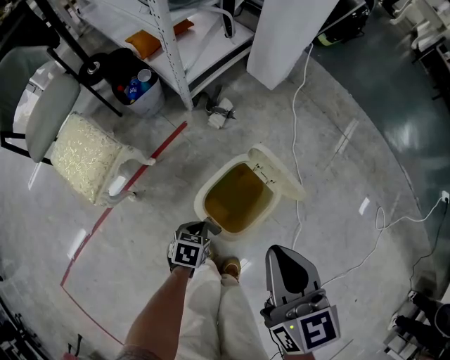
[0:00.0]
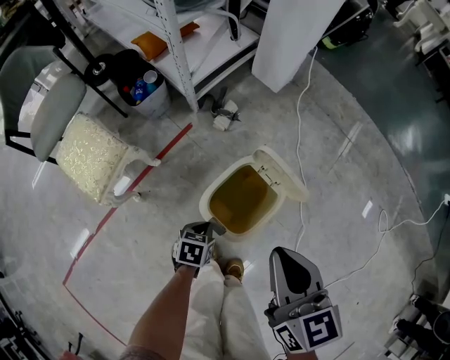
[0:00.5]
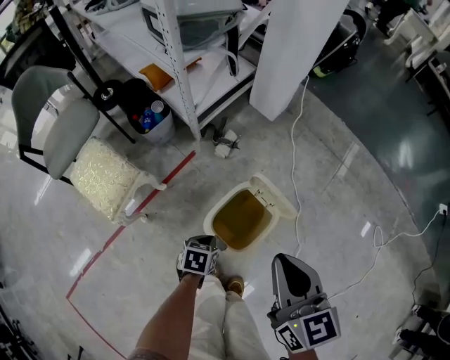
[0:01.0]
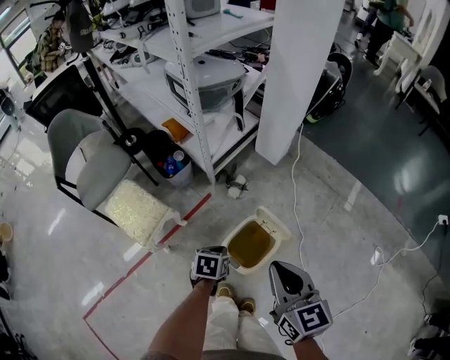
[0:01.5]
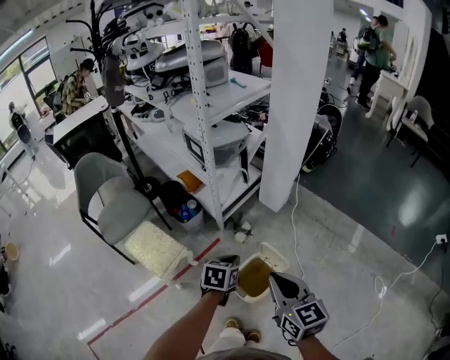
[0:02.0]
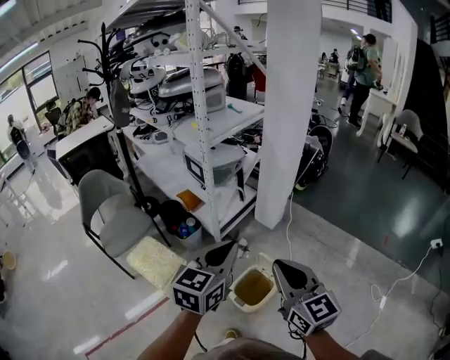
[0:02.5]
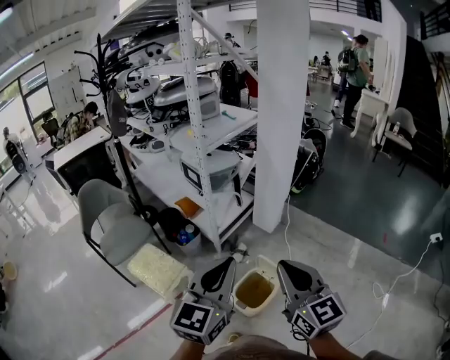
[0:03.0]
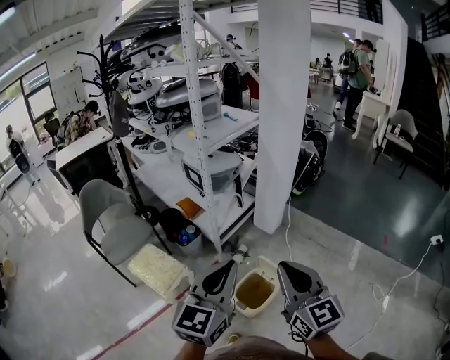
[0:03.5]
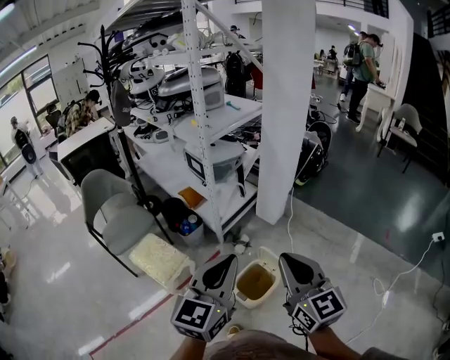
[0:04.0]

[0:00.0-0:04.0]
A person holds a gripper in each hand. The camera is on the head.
0:00.0 to 0:02.0: The right gripper moves upward, about 25 cm; the left gripper is displaced upward by about 40 cm, and turns by about 20 degrees.
0:02.0 to 0:04.0: The right gripper moves upward, some 15 cm, while the left gripper goes approximately 35 cm upward and backward, and tips its fingers upward by some 40 degrees.

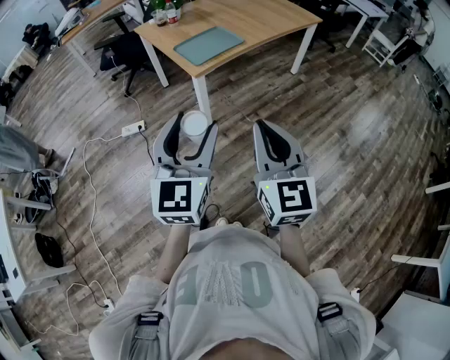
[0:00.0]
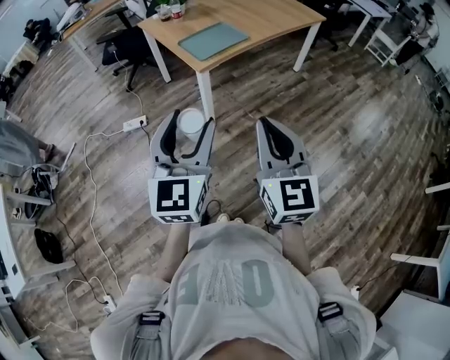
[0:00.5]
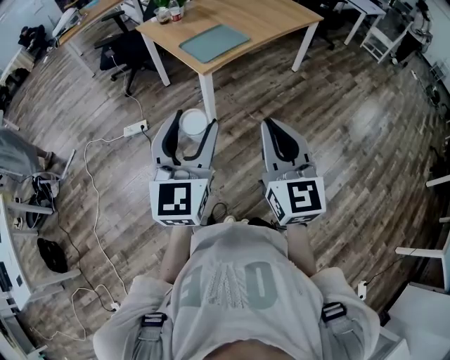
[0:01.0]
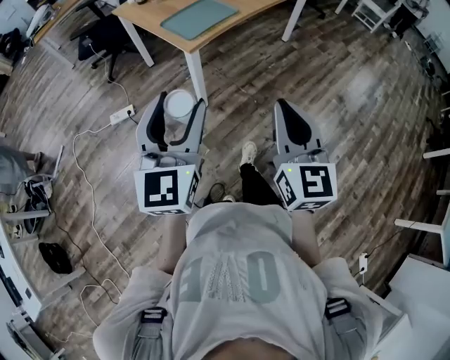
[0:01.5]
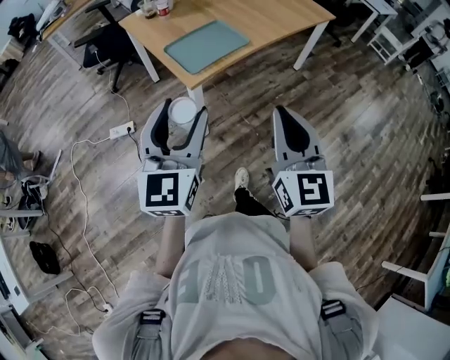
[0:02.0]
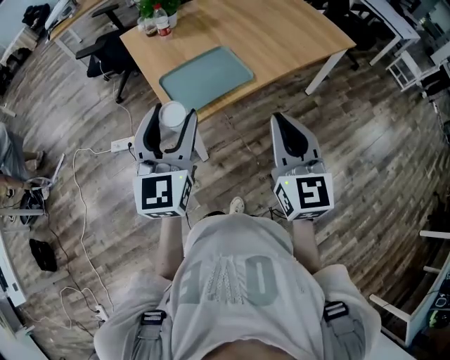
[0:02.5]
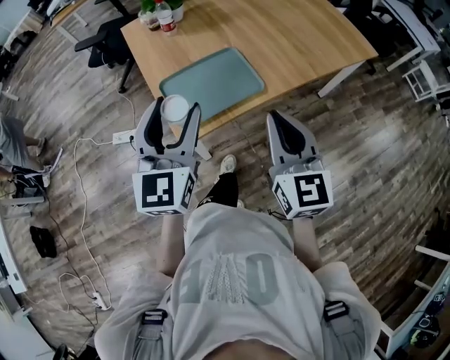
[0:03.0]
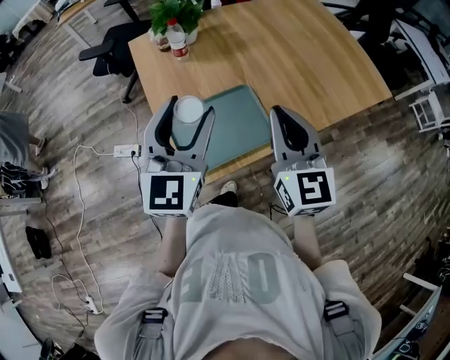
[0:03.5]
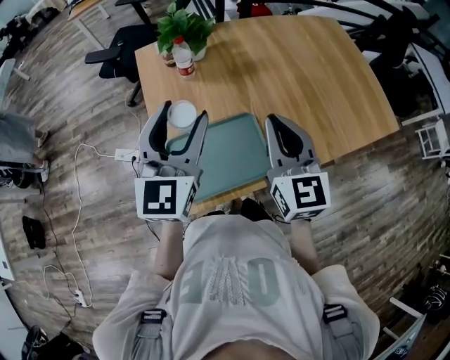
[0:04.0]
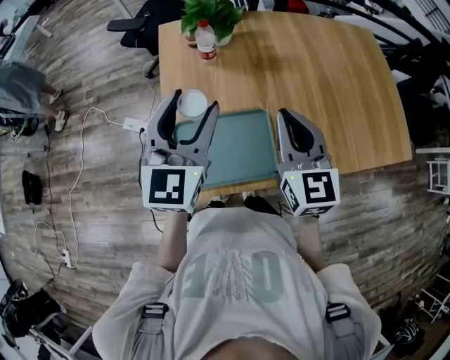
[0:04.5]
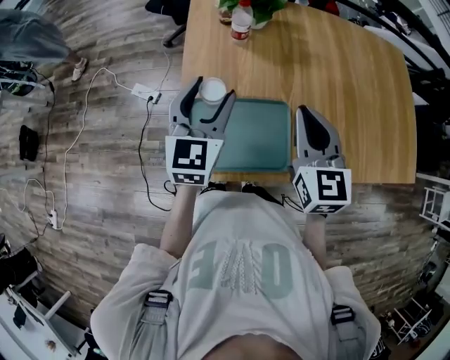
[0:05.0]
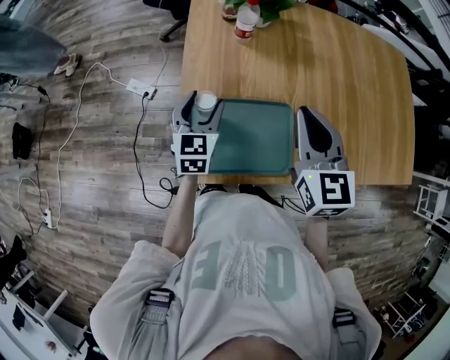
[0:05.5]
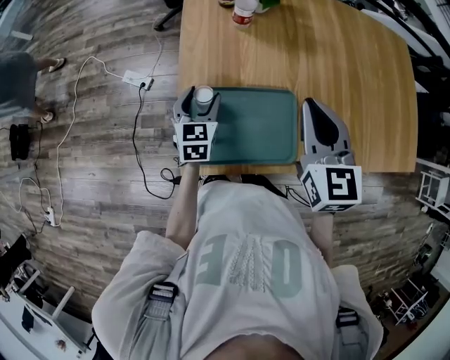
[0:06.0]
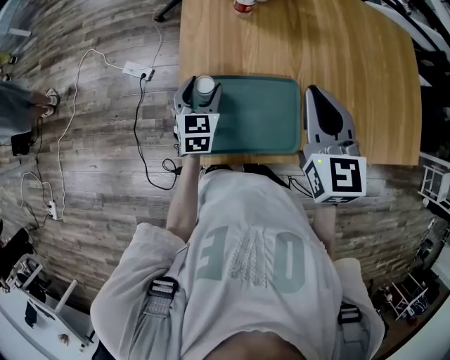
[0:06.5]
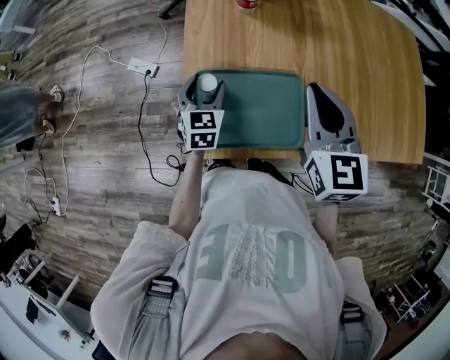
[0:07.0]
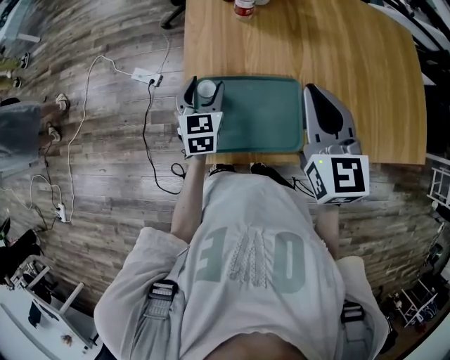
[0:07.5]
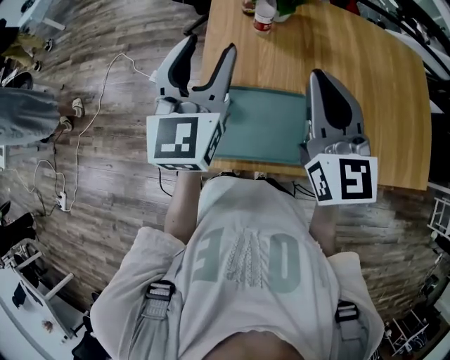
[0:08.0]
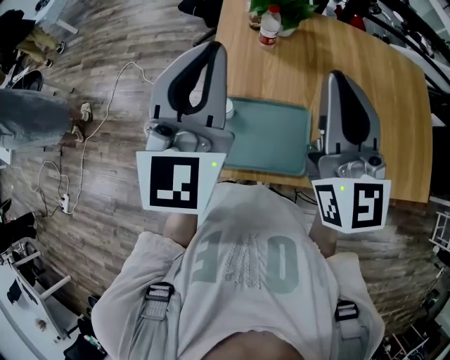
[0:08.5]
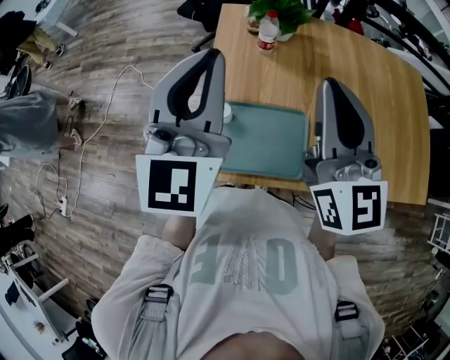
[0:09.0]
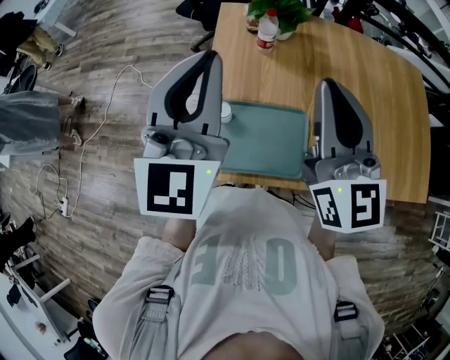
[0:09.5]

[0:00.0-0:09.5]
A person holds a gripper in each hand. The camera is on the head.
0:00.0 to 0:02.0: Both grippers move forward, approximately 20 cm.
0:02.0 to 0:04.0: The pair of grippers is taken forward, roughly 50 cm. The right gripper rotates roughly 30 degrees.
0:04.0 to 0:05.5: The left gripper is displaced downward by roughly 20 cm, and rotates some 30 degrees. The right gripper shifts approximately 5 cm forward.
0:07.5 to 0:09.5: The right gripper is displaced upward by about 15 cm, and rotates approximately 20 degrees; the left gripper is displaced upward by roughly 35 cm, points its fingers about 30 degrees further upward, and closes its fingers.

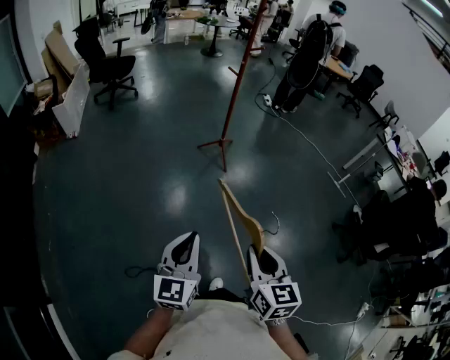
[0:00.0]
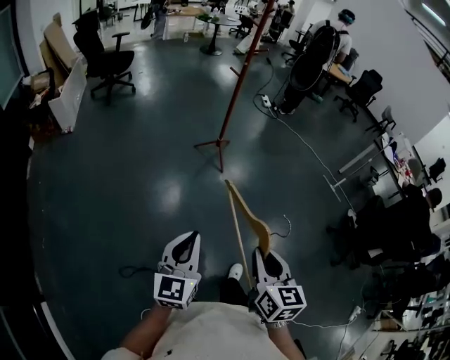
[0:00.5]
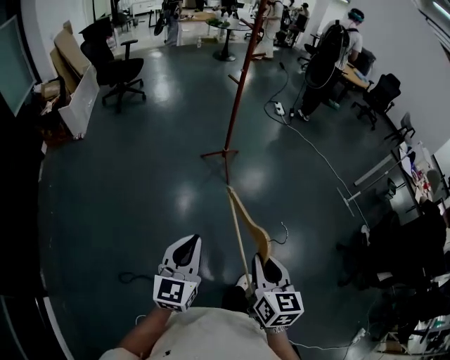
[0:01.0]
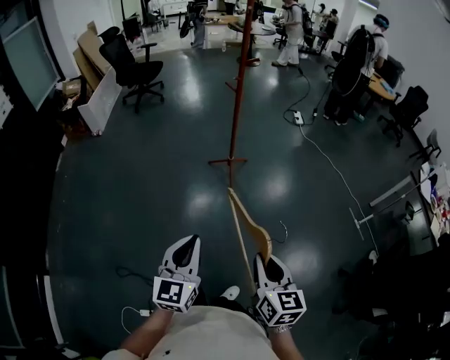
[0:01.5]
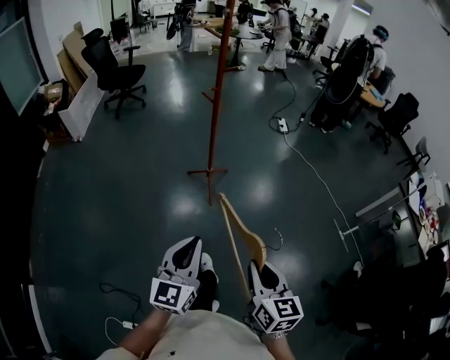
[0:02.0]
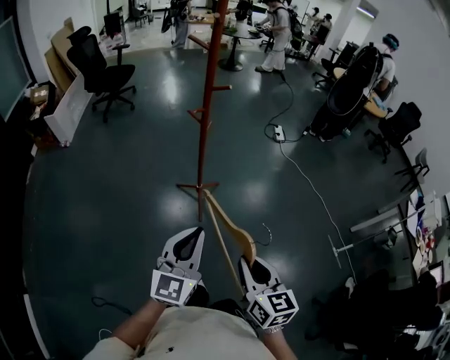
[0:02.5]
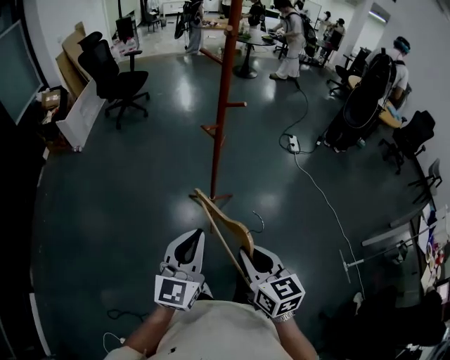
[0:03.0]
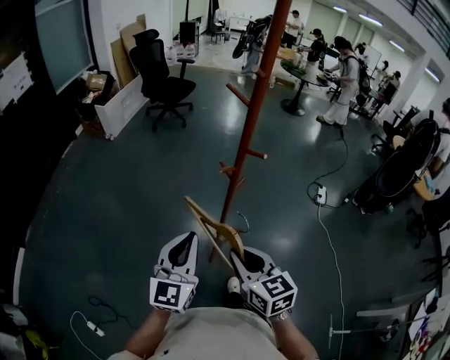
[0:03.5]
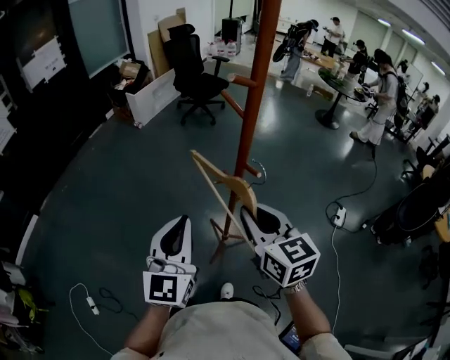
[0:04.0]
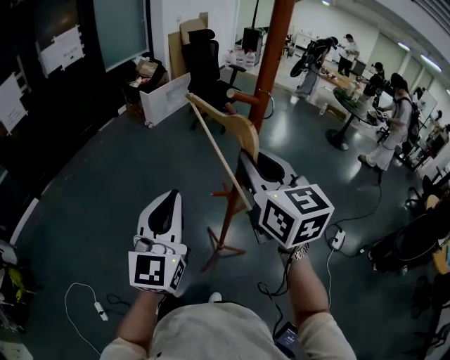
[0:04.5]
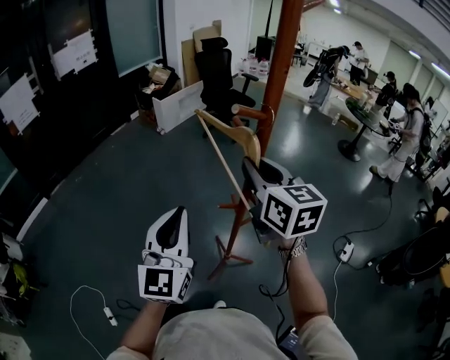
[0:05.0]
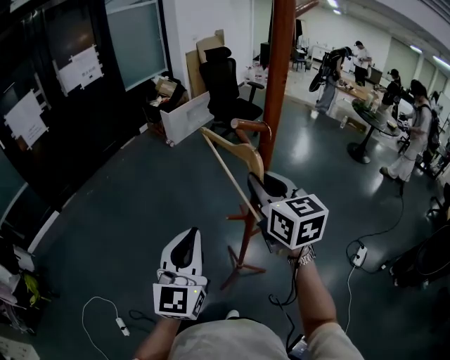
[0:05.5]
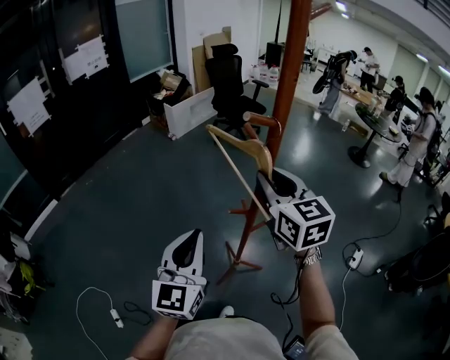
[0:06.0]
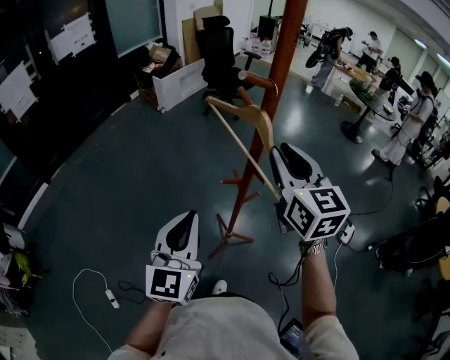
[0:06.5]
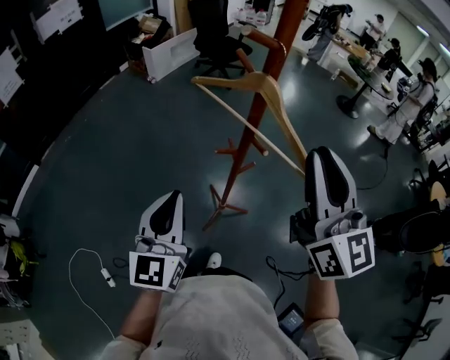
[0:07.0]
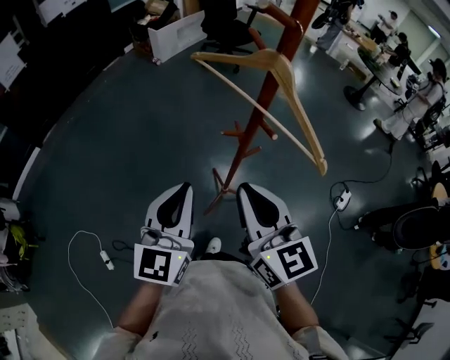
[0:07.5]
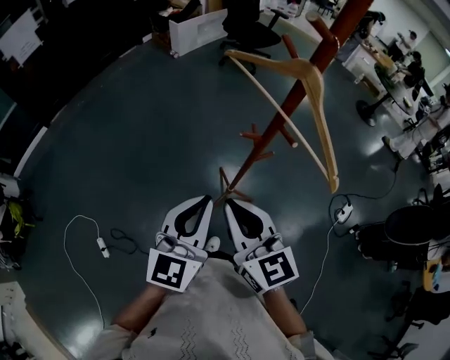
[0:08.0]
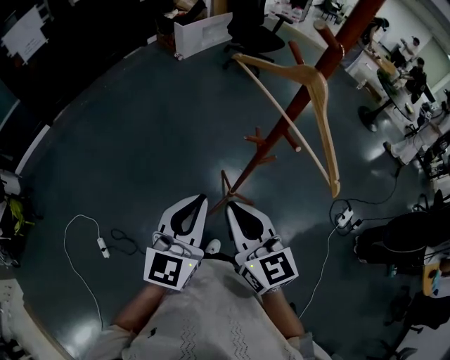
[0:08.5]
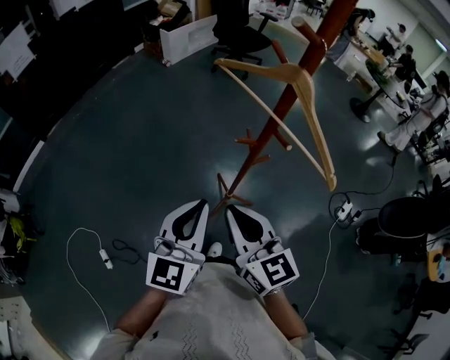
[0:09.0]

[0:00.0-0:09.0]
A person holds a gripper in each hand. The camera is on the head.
0:00.0 to 0:02.0: The pair of grippers is taken to the right and forward, approximately 50 cm.
0:02.0 to 0:04.5: The pair of grippers is taken roughly 70 cm. The right gripper changes its angle by some 60 degrees. The left gripper turns by roughly 60 degrees.
0:04.5 to 0:07.0: The right gripper goes roughly 10 cm backward and to the right; the left gripper is displaced downward by some 10 cm.
0:07.0 to 0:09.0: The right gripper is displaced downward and to the left by some 25 cm, and changes its angle by some 30 degrees.

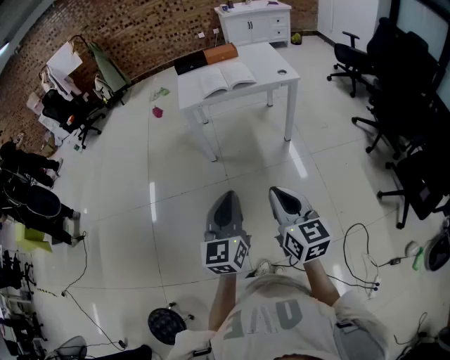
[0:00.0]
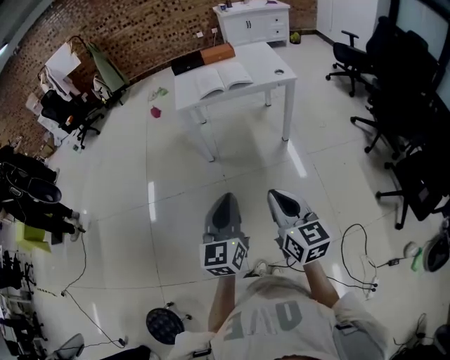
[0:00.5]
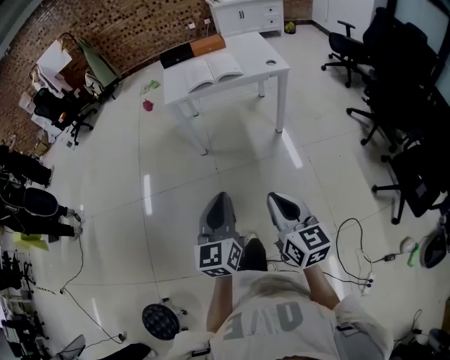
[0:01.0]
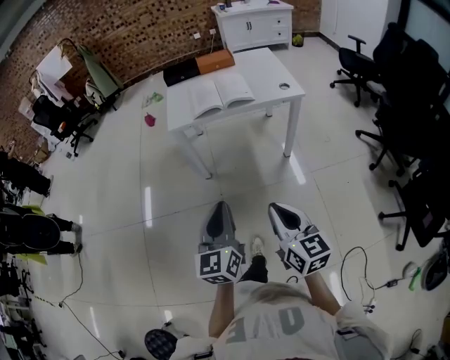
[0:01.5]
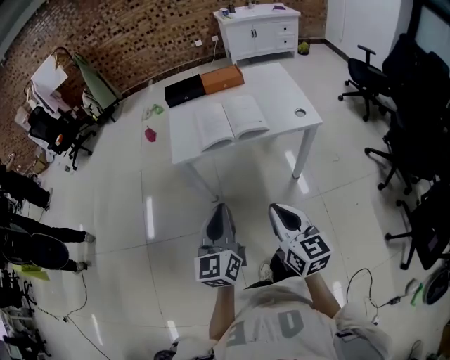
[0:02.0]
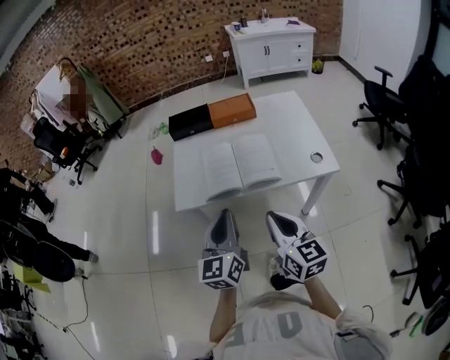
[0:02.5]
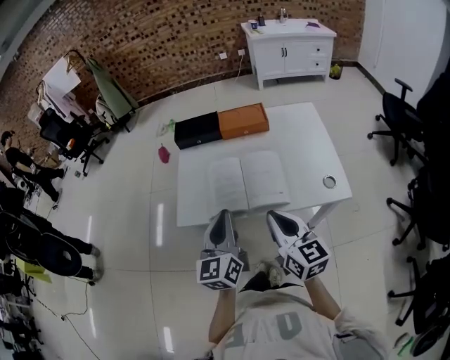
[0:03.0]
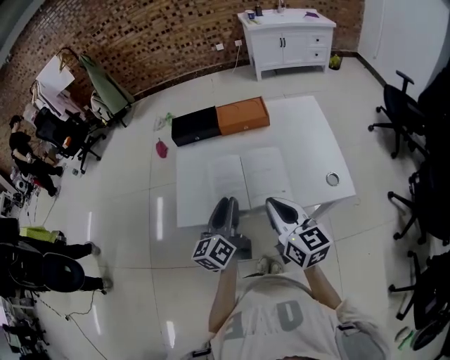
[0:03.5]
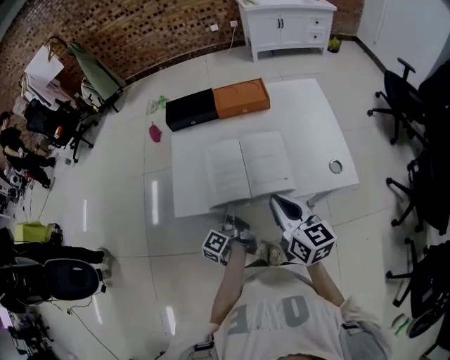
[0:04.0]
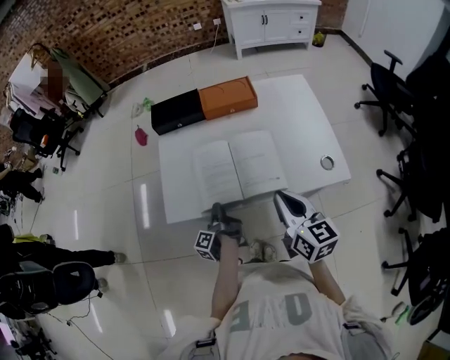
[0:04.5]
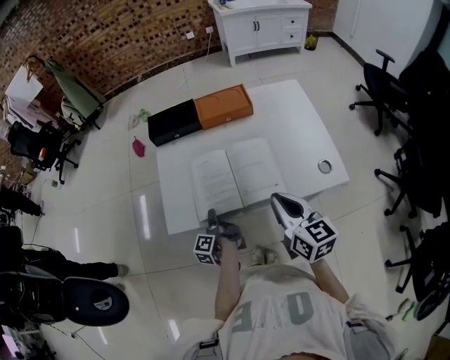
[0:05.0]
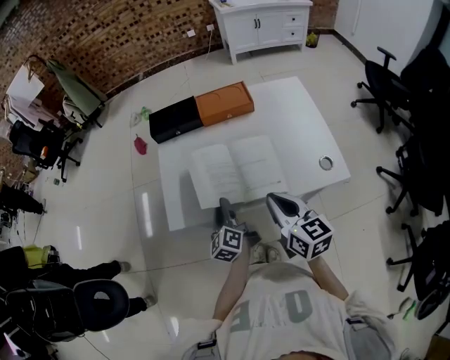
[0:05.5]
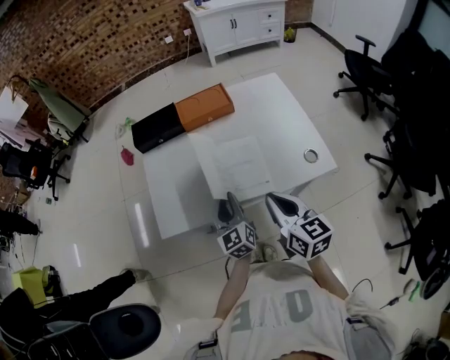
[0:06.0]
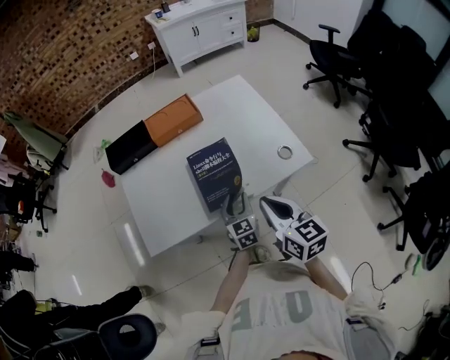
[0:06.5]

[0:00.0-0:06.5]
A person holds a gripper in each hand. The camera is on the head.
0:00.0 to 0:02.0: Both grippers travel together forward, about 35 cm.
0:02.0 to 0:04.5: The right gripper is displaced forward by roughly 35 cm, while the left gripper is displaced forward and downward by approximately 50 cm, rotates around the line of its fingers by some 90 degrees, counterclockwise from behind, and opens.
0:04.5 to 0:06.5: The right gripper moves some 5 cm. The left gripper shifts some 20 cm to the right, and rotates around the line of its fingers by some 100 degrees, clockwise from behind.
